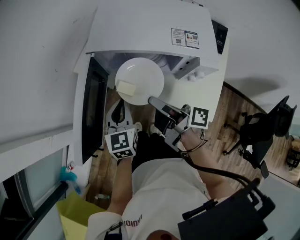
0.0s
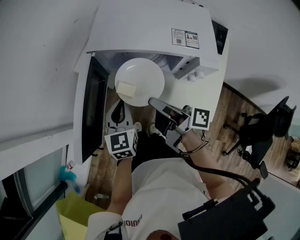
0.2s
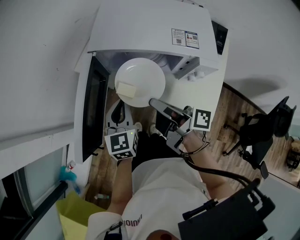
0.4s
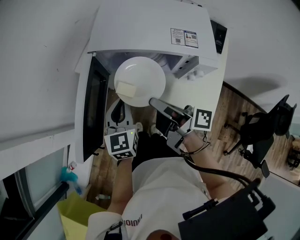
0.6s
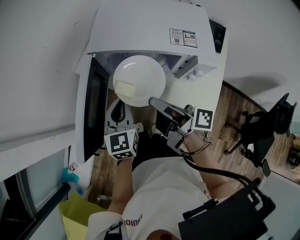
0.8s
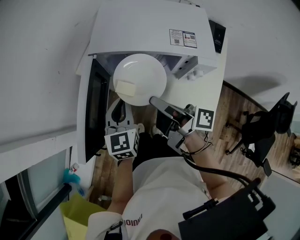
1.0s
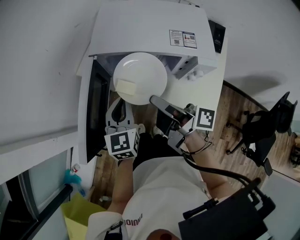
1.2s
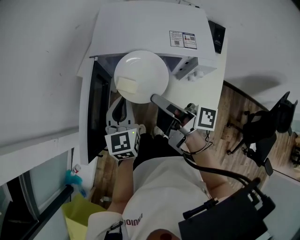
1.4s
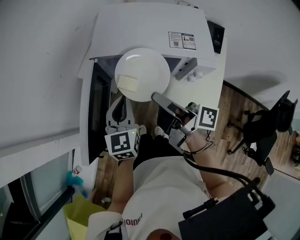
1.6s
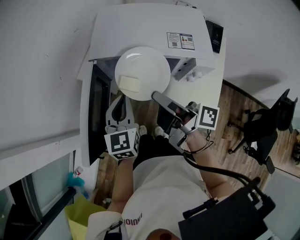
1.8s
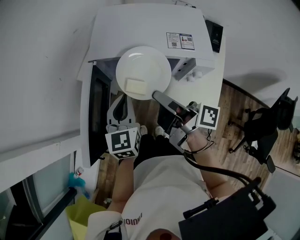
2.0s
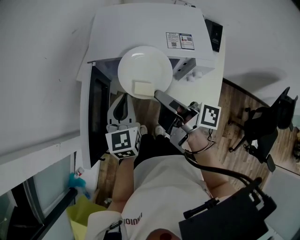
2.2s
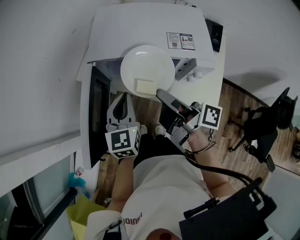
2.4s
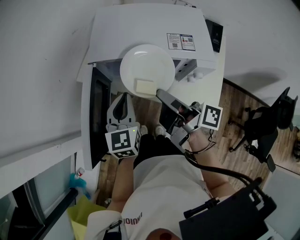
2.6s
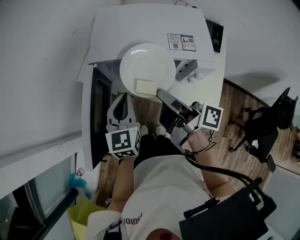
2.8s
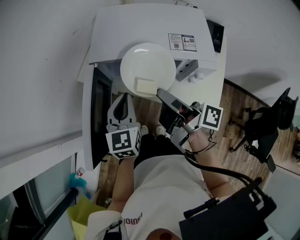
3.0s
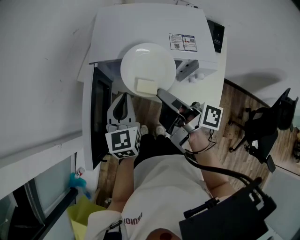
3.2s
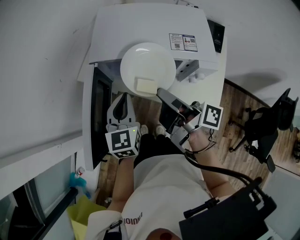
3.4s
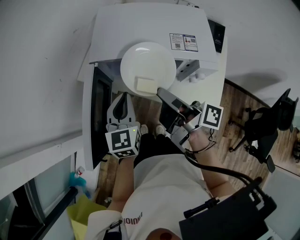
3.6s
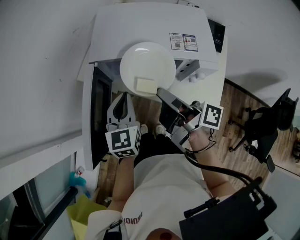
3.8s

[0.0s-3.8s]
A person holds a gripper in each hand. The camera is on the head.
0.0s to 1.2s: The grippers make only small movements.
1.2s to 2.6s: There are only small adjustments of the grippers.
2.6s to 3.8s: Both grippers stay about where they are.

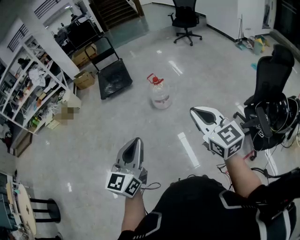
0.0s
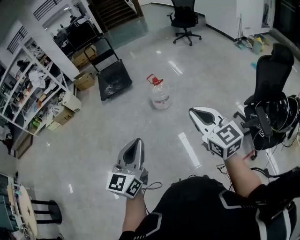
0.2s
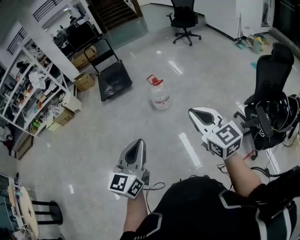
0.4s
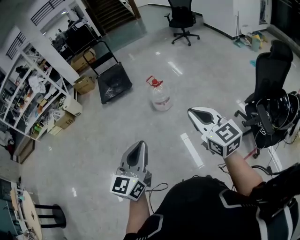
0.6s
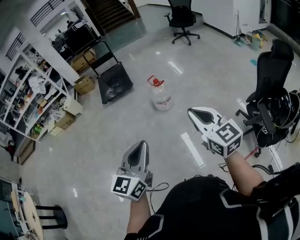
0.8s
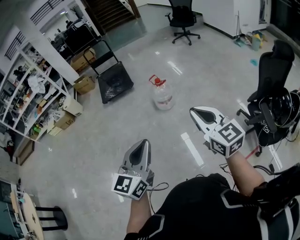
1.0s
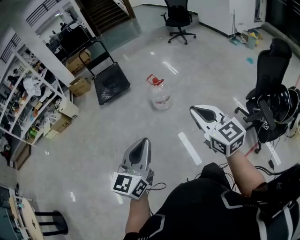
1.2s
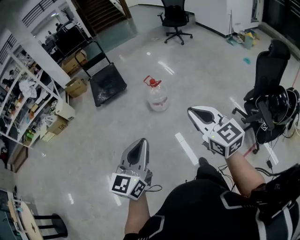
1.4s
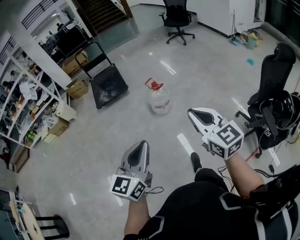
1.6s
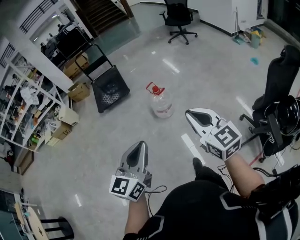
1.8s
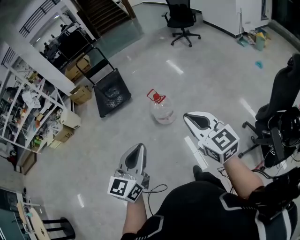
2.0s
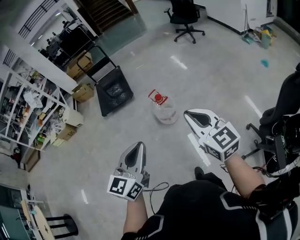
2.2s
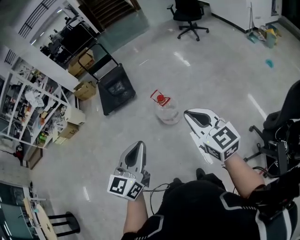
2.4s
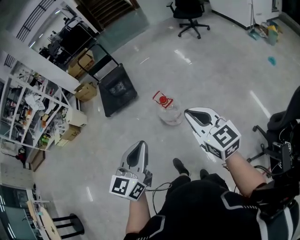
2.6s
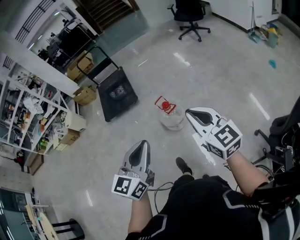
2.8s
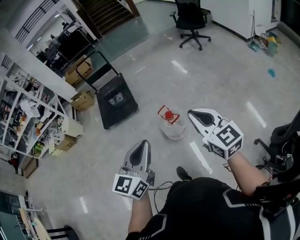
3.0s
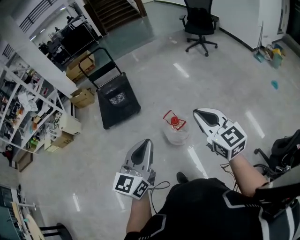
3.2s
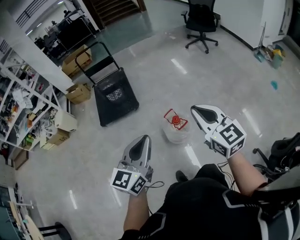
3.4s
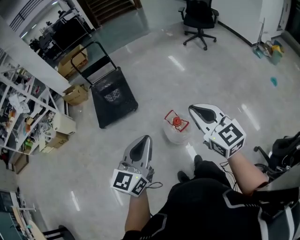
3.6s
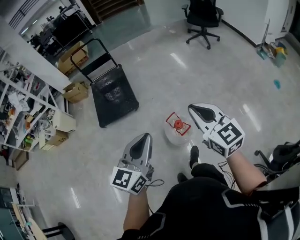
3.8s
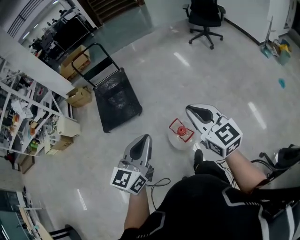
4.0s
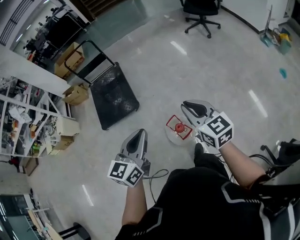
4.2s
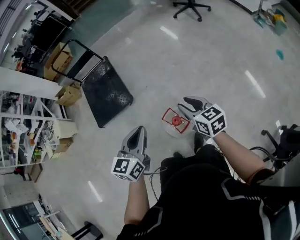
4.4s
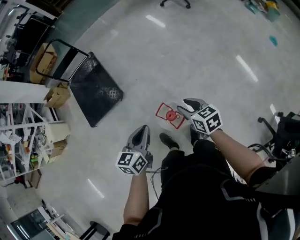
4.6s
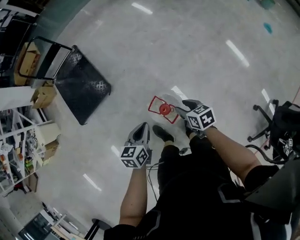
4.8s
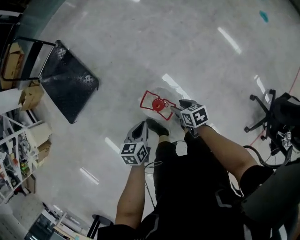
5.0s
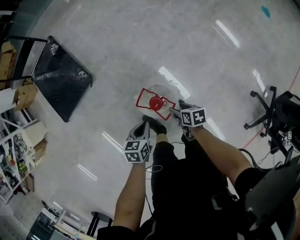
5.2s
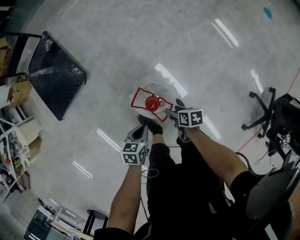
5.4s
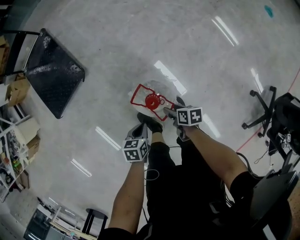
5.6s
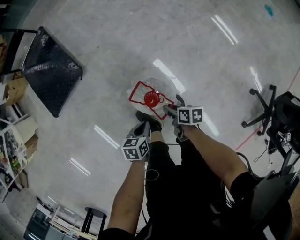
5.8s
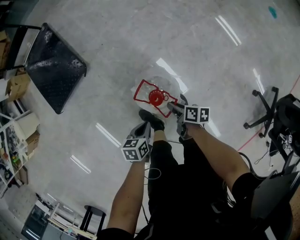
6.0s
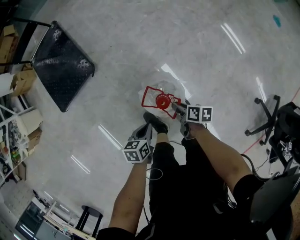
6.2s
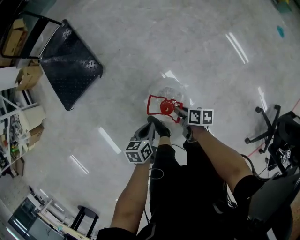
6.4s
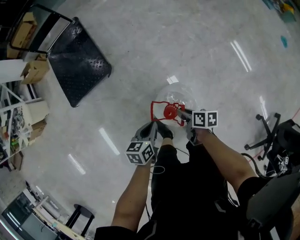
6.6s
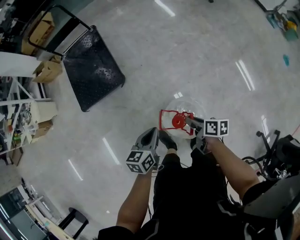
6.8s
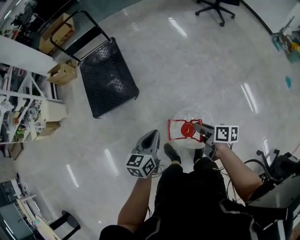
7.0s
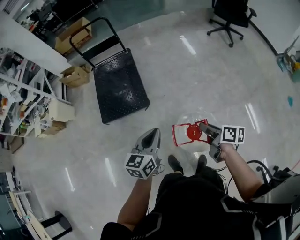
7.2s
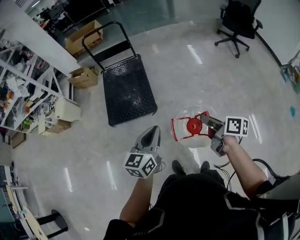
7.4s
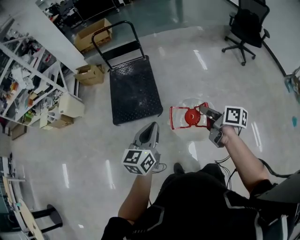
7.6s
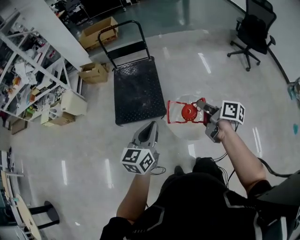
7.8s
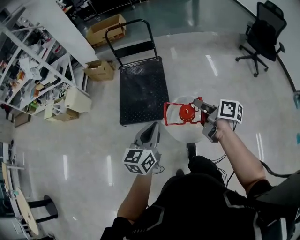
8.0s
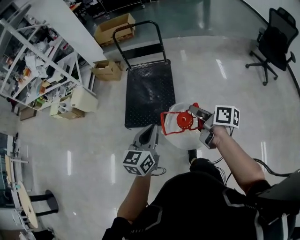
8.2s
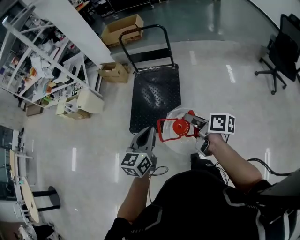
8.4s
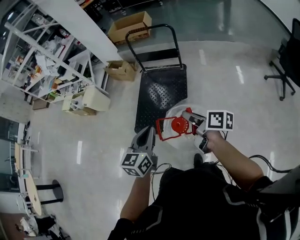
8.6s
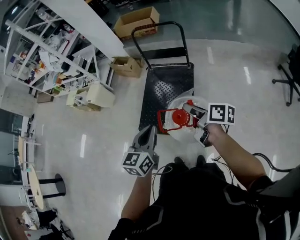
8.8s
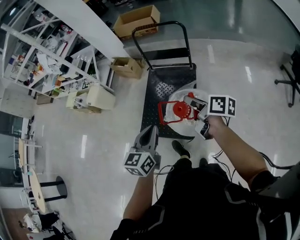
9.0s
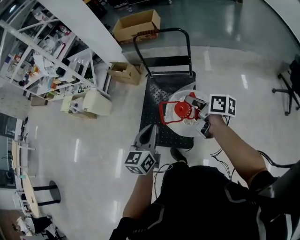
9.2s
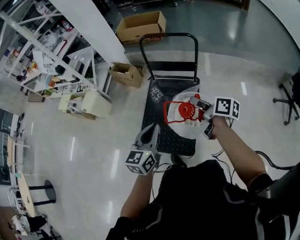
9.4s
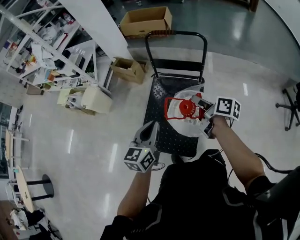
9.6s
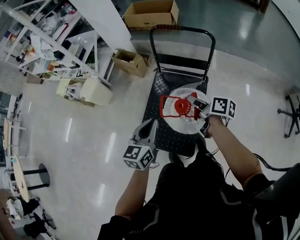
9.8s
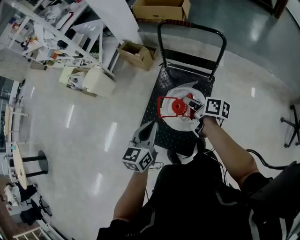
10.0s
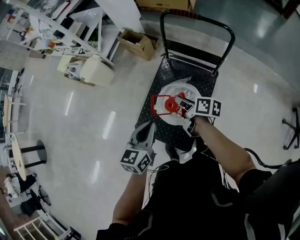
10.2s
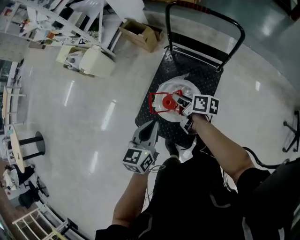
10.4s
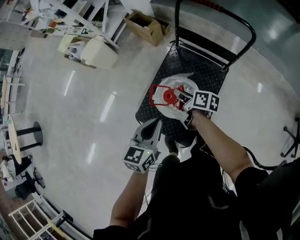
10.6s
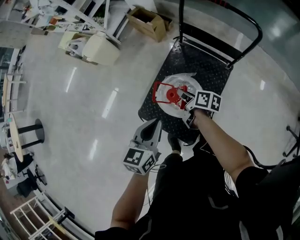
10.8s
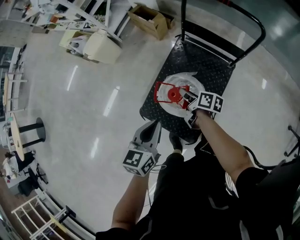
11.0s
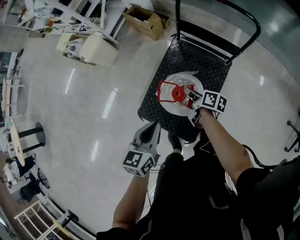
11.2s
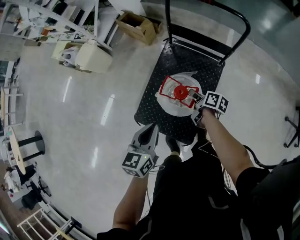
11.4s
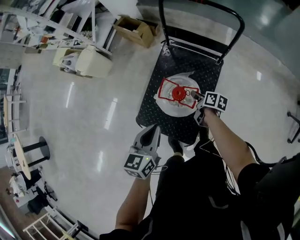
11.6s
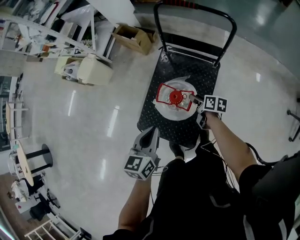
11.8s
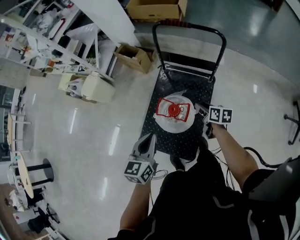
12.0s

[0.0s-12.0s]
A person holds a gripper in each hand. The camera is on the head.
0.0s to 1.6s: The left gripper goes approximately 10 cm forward, while the right gripper moves forward and to the left, about 10 cm.
1.6s to 3.0s: Both grippers are carried forward, some 40 cm.
3.0s to 4.4s: The left gripper goes some 40 cm forward; the right gripper shifts about 40 cm forward and downward, changes its angle by roughly 30 degrees, and opens.
4.4s to 6.0s: The grippers both shift downward by approximately 50 cm. The right gripper rolls clockwise, seen from behind, by some 60 degrees, and opens, then closes once more. Meanwhile the left gripper tips its fingers downward by roughly 30 degrees.
6.0s to 7.6s: The grippers both shift upward by roughly 50 cm. The left gripper points its fingers roughly 40 degrees further upward, while the right gripper turns by roughly 30 degrees.
7.6s to 9.0s: The two grippers go some 40 cm forward. The left gripper turns by some 20 degrees; the right gripper turns by roughly 20 degrees.
9.0s to 10.4s: The right gripper is displaced forward, downward and to the left by about 40 cm, and changes its angle by approximately 20 degrees. Meanwhile the left gripper travels forward by approximately 30 cm.
10.4s to 12.0s: The right gripper moves to the right, about 15 cm, changes its angle by some 20 degrees, and opens.

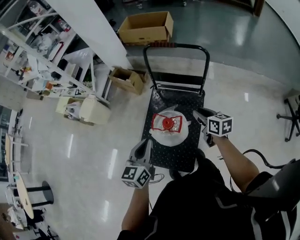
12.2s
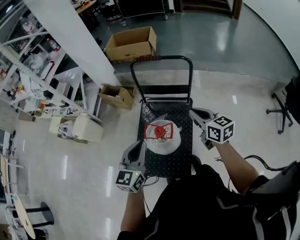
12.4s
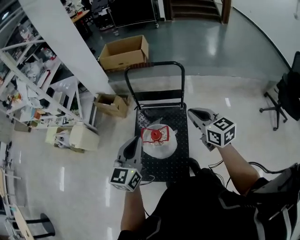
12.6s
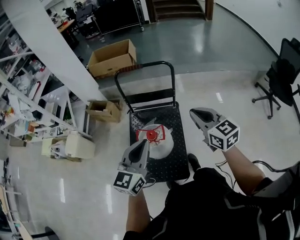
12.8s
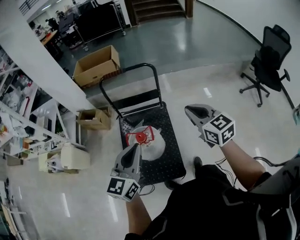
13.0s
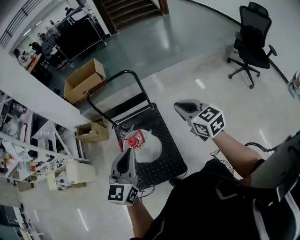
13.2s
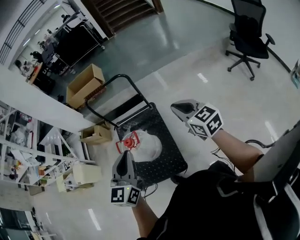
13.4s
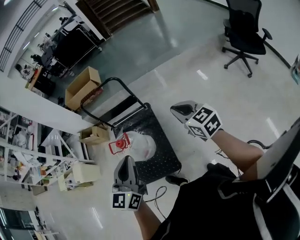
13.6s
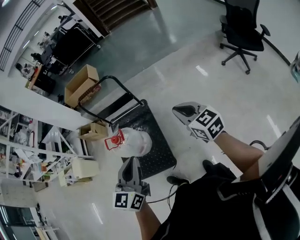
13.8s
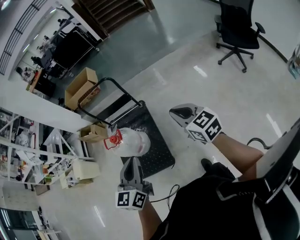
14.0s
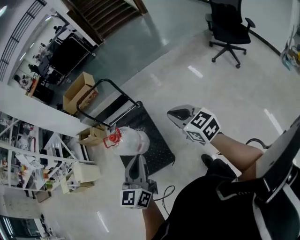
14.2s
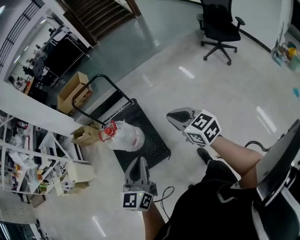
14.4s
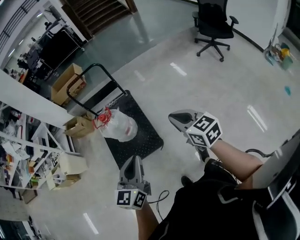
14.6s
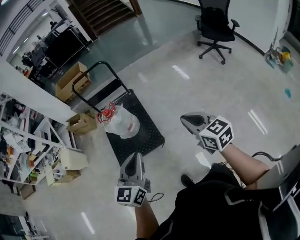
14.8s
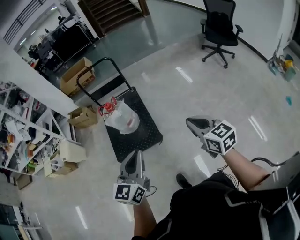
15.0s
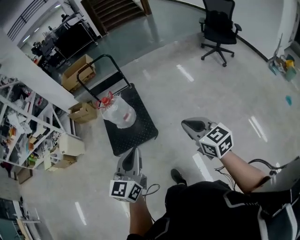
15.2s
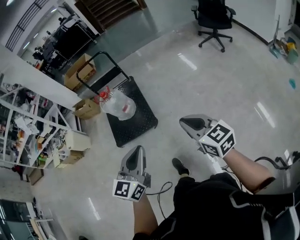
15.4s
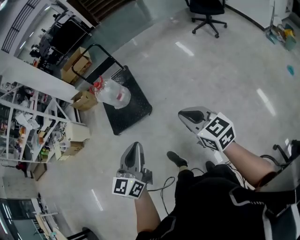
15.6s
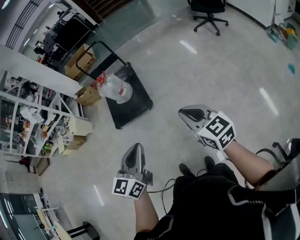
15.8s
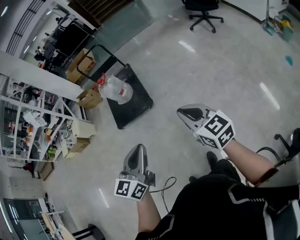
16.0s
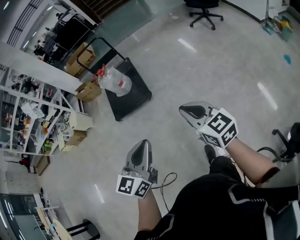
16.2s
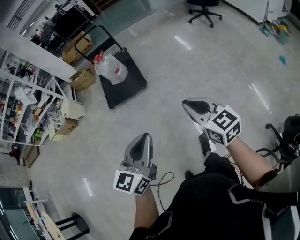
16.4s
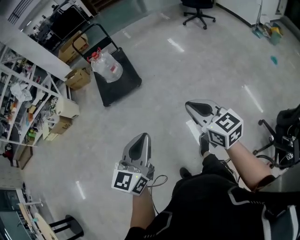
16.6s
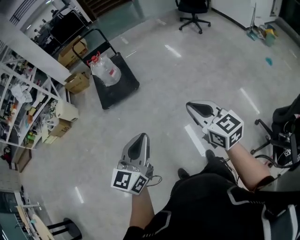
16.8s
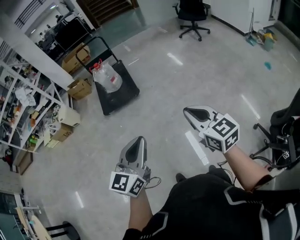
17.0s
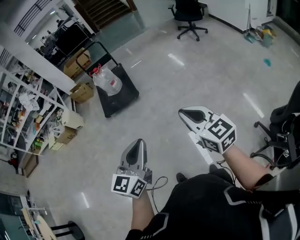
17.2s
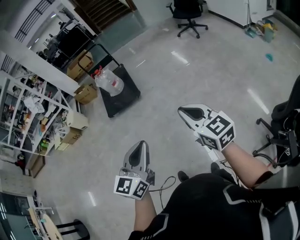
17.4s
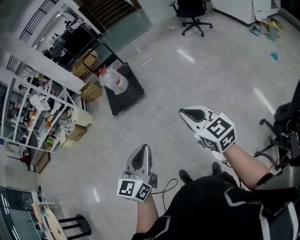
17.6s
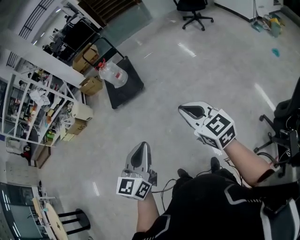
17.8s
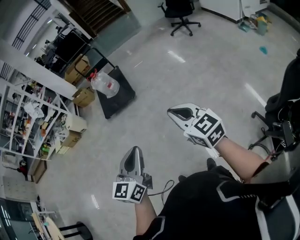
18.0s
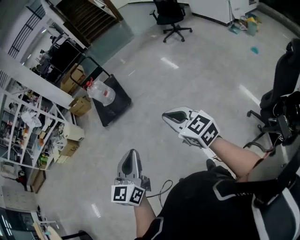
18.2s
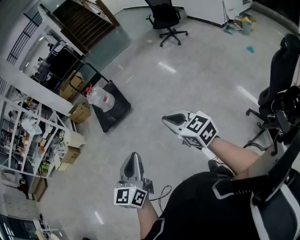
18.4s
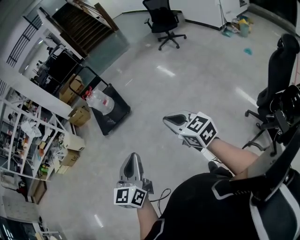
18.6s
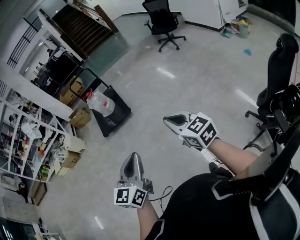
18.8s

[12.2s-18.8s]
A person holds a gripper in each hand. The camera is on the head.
12.2s to 13.8s: The two grippers travel together, approximately 40 cm. The right gripper swivels roughly 30 degrees, and closes, while the left gripper changes its angle by about 30 degrees.
13.8s to 15.4s: Both grippers are carried backward, approximately 60 cm.
15.4s to 17.2s: The two grippers travel together, backward, roughly 50 cm.
17.2s to 18.8s: Both grippers travel together backward, some 10 cm.

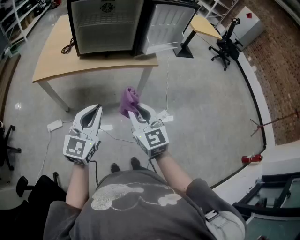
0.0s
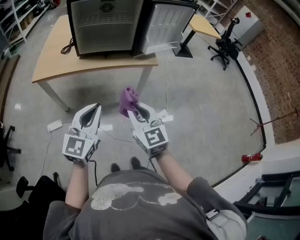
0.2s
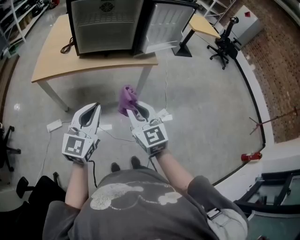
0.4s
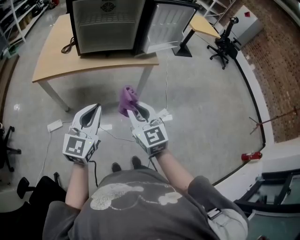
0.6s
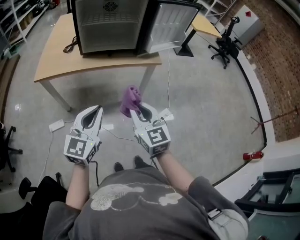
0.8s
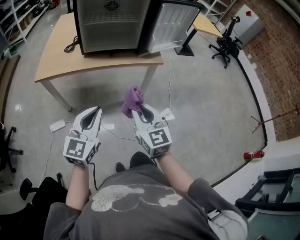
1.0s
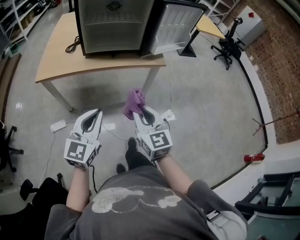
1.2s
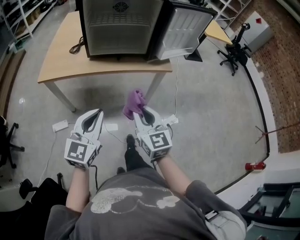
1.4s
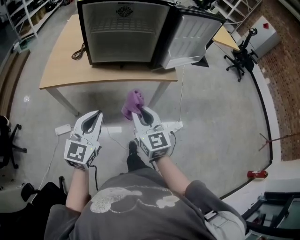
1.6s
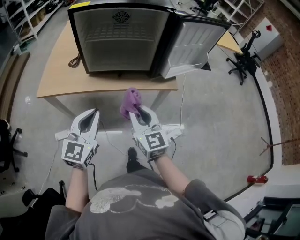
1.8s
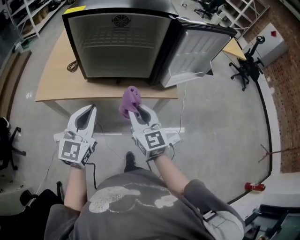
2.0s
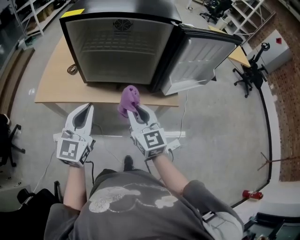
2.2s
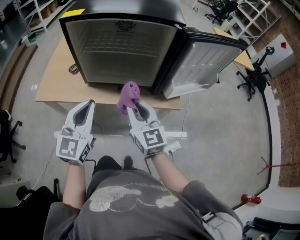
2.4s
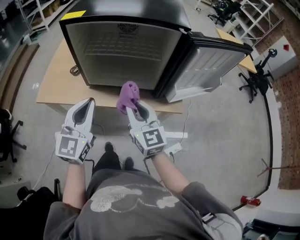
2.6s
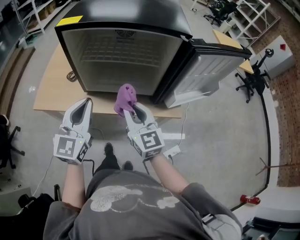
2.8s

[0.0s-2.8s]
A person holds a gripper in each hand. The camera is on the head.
0.0s to 1.4s: The left gripper moves to the left, some 5 cm, while the right gripper heads forward, covering some 5 cm.
1.4s to 2.8s: Both grippers travel together forward, roughly 30 cm.
